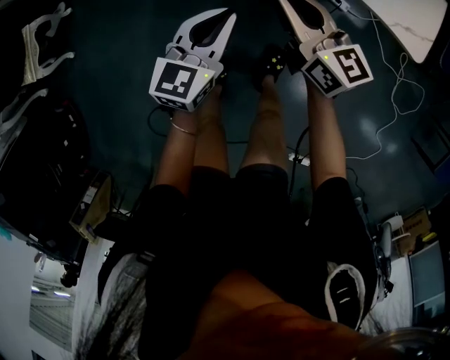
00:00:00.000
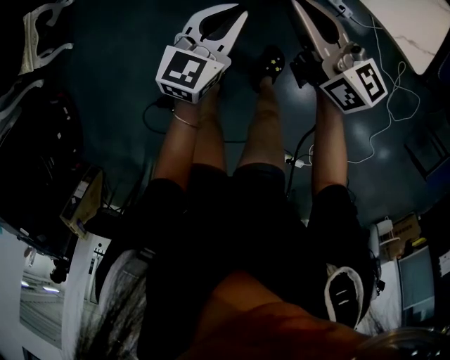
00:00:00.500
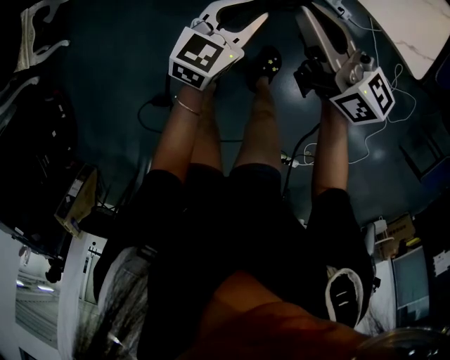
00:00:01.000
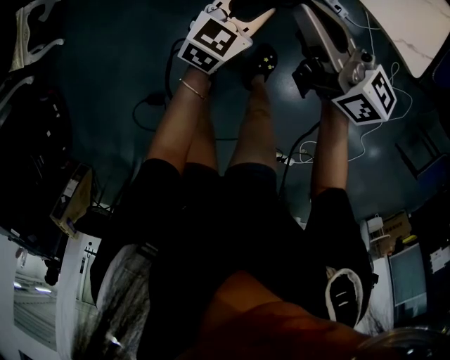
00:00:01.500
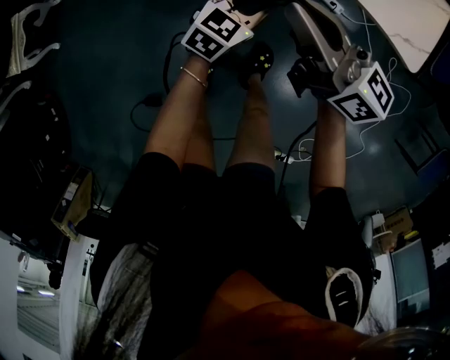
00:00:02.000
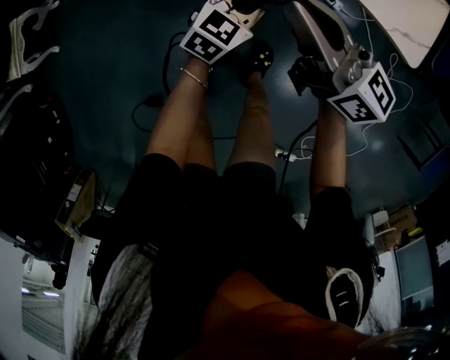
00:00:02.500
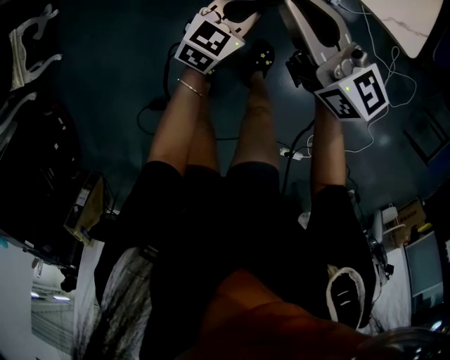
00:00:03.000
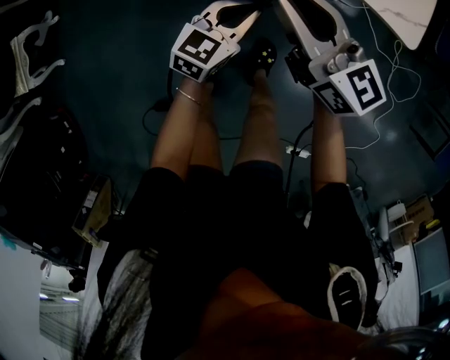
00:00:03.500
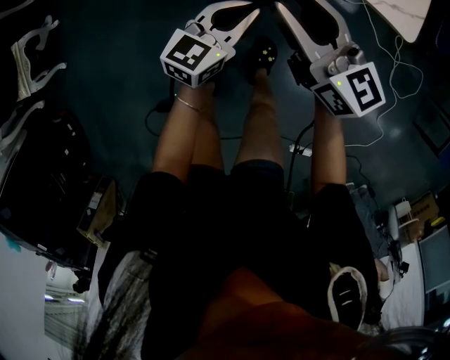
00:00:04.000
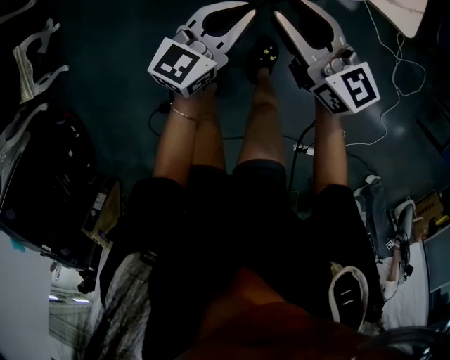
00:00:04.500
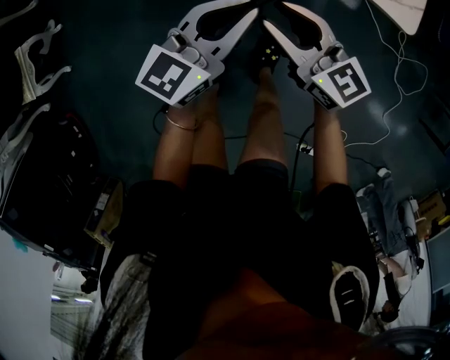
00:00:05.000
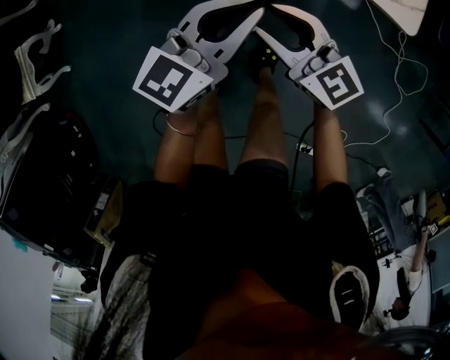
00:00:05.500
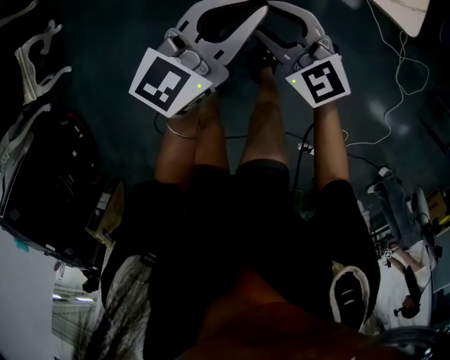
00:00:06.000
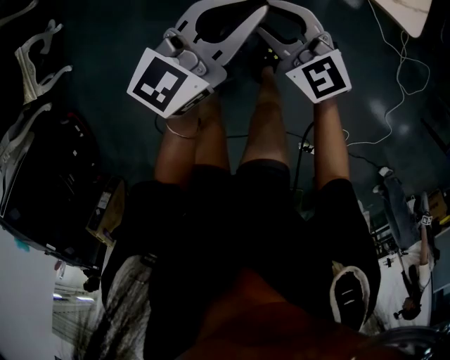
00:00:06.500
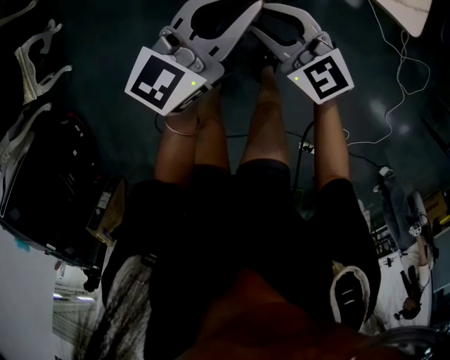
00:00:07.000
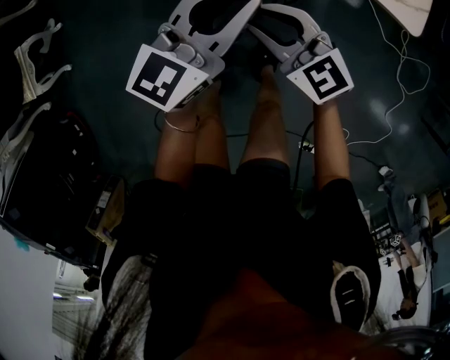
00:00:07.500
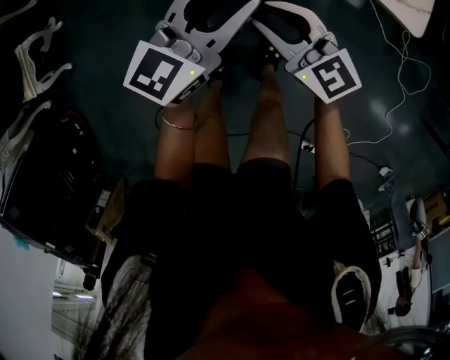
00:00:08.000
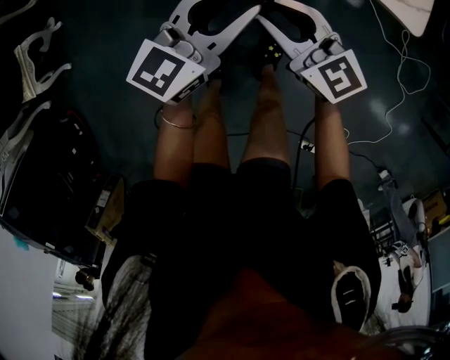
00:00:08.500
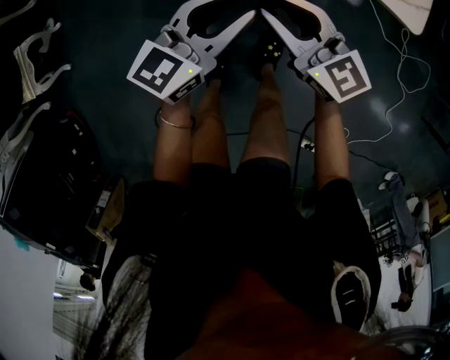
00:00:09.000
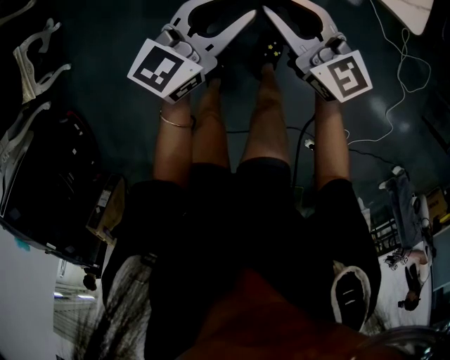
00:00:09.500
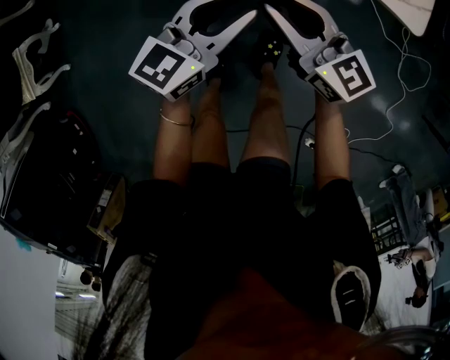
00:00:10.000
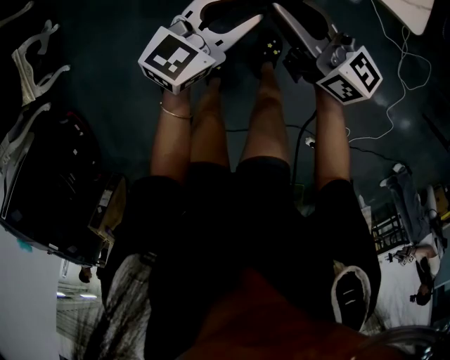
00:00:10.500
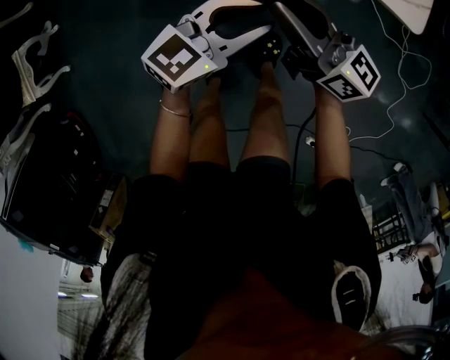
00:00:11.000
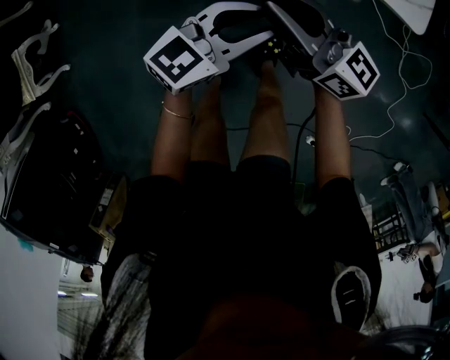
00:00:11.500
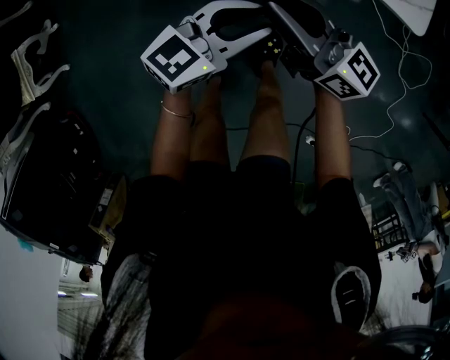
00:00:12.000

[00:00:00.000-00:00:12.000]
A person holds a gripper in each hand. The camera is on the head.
00:00:00.000 to 00:00:02.000: The left gripper moves downward and to the right, some 10 cm, and changes its angle by roughly 20 degrees. Meanwhile the right gripper is displaced upward by approximately 5 cm, and turns by approximately 20 degrees.
00:00:02.000 to 00:00:04.000: The left gripper changes place by roughly 5 cm. The right gripper is displaced to the right by approximately 5 cm, rotates roughly 20 degrees, and opens.
00:00:04.000 to 00:00:06.000: The left gripper travels upward by about 15 cm. The right gripper moves downward, roughly 5 cm, and rotates some 40 degrees.
00:00:06.000 to 00:00:08.000: There are only small adjustments of the grippers.
00:00:08.000 to 00:00:10.000: The left gripper ends up approximately 5 cm from where it was.
00:00:10.000 to 00:00:12.000: The right gripper rotates roughly 20 degrees; the left gripper moves about 5 cm.

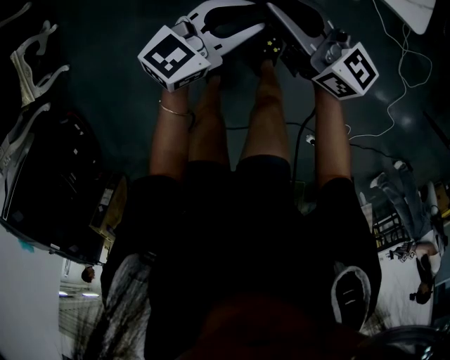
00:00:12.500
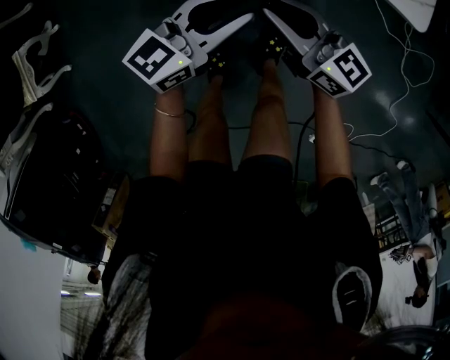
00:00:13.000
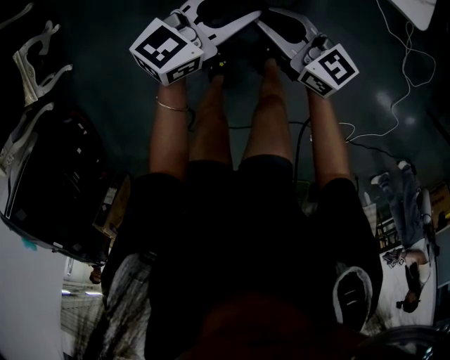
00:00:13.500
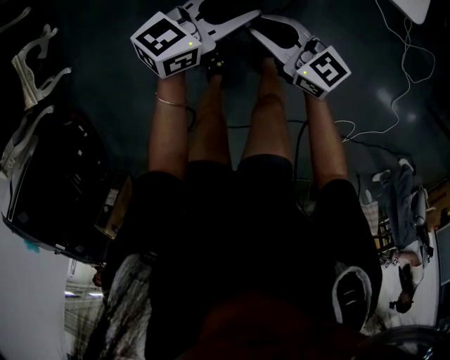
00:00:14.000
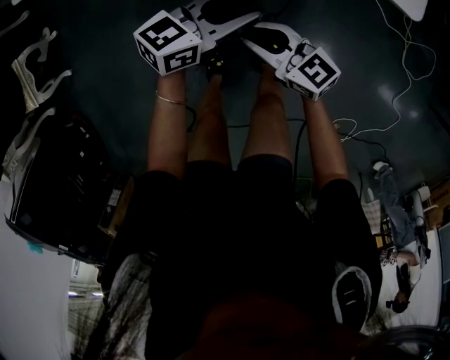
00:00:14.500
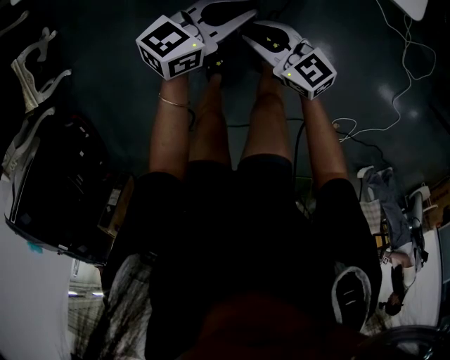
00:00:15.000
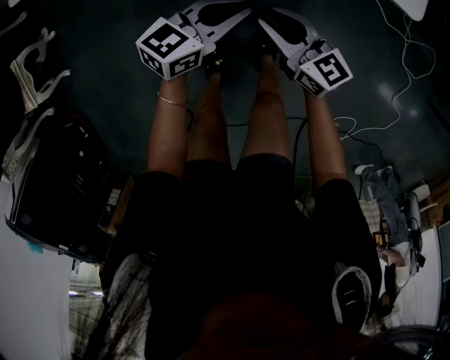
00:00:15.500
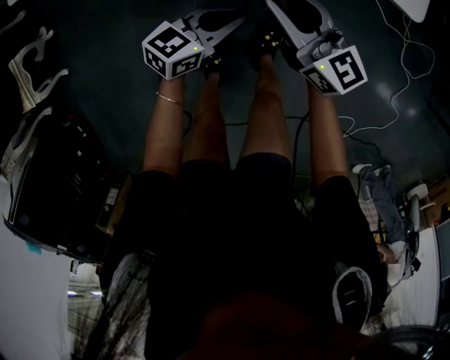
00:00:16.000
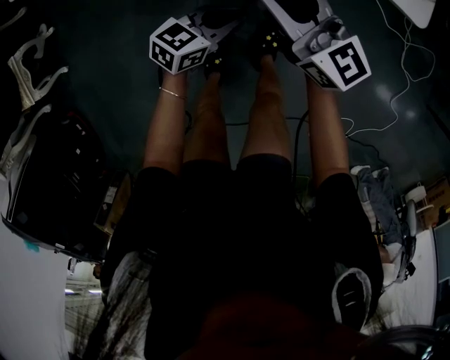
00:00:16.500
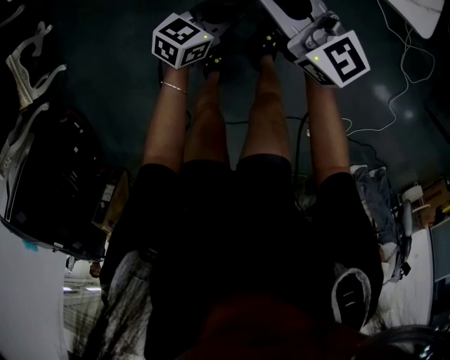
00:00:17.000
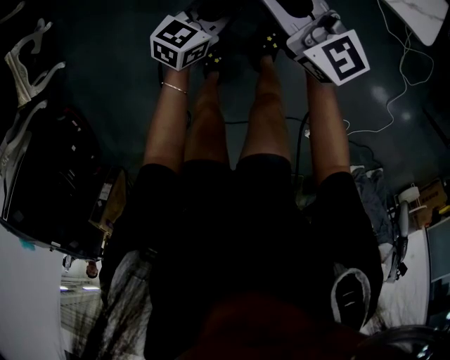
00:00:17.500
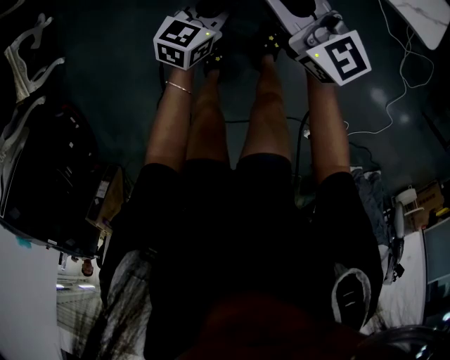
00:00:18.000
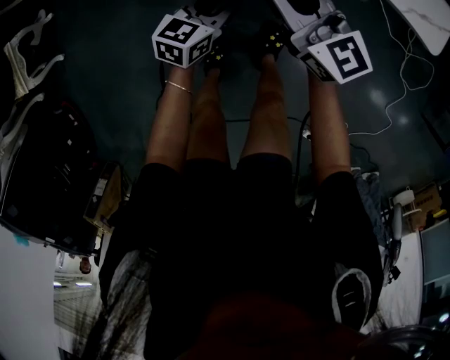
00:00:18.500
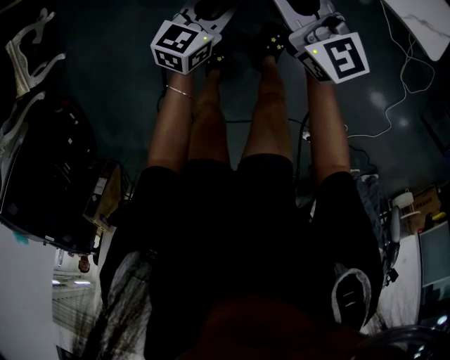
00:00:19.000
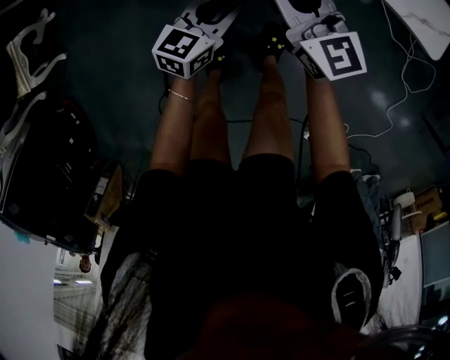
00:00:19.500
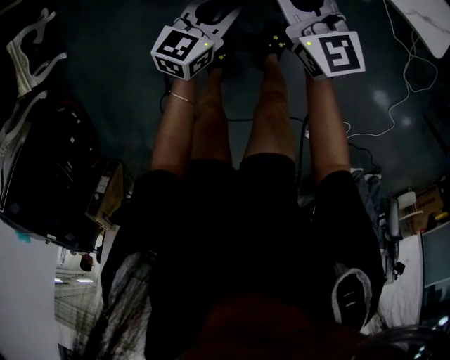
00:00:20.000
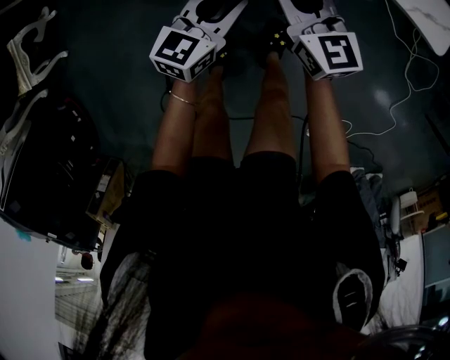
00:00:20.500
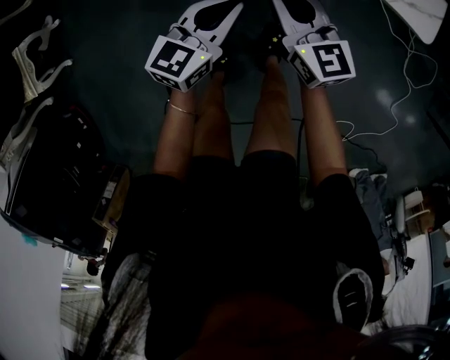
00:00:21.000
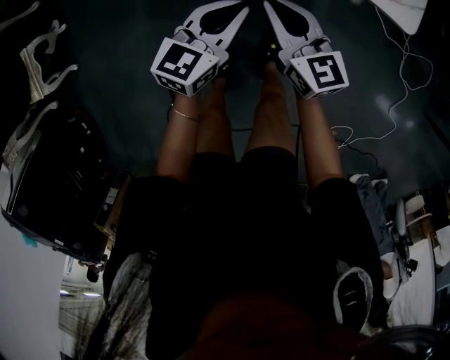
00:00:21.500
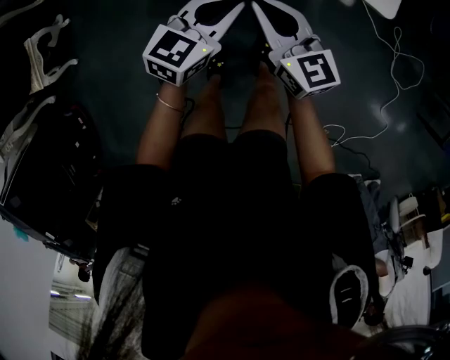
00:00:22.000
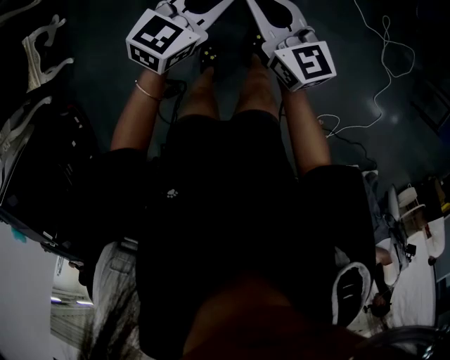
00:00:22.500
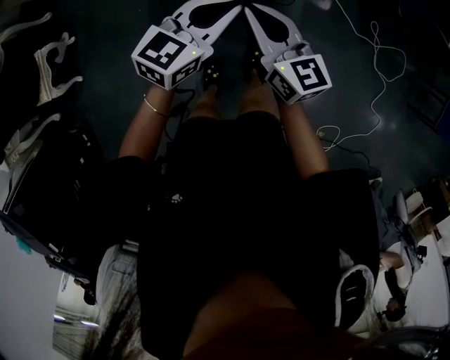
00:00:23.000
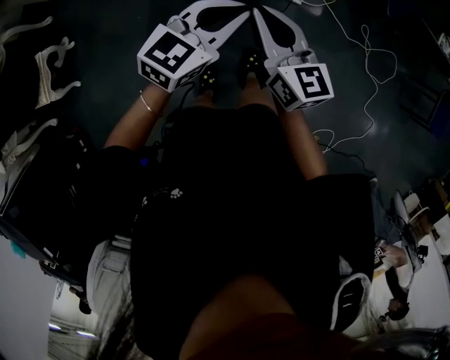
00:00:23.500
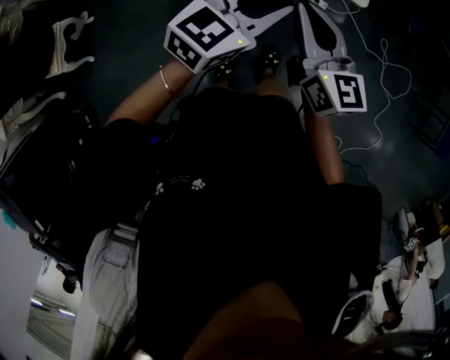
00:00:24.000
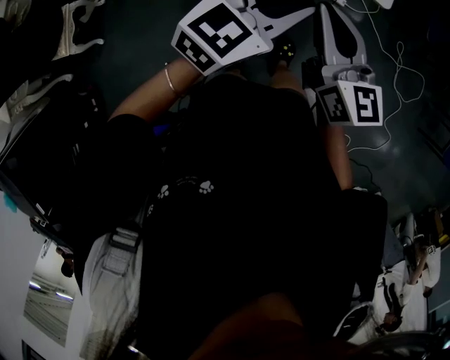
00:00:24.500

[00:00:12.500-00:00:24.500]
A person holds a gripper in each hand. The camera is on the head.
00:00:12.500 to 00:00:14.500: The right gripper shifts roughly 10 cm downward, and rotates approximately 20 degrees.
00:00:14.500 to 00:00:16.500: The left gripper travels downward by some 10 cm; the right gripper moves some 15 cm, and turns by approximately 30 degrees.
00:00:16.500 to 00:00:18.500: The right gripper ends up about 5 cm from where it was. The left gripper heads to the left, covering roughly 5 cm.
00:00:18.500 to 00:00:20.500: The left gripper goes approximately 5 cm upward; the right gripper shifts by some 5 cm.
00:00:20.500 to 00:00:22.500: The right gripper shifts roughly 15 cm upward and backward. The left gripper shifts about 20 cm upward.
00:00:22.500 to 00:00:24.500: The grippers both shift upward by roughly 15 cm.

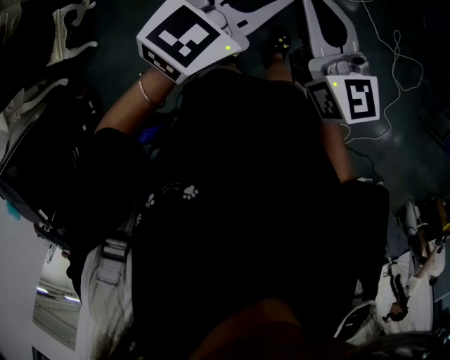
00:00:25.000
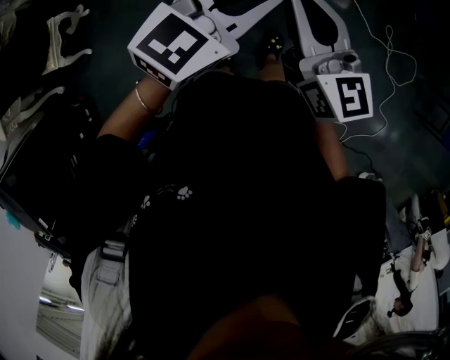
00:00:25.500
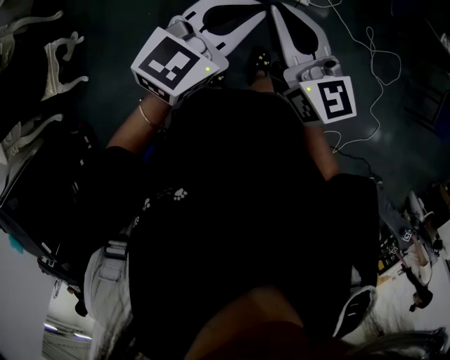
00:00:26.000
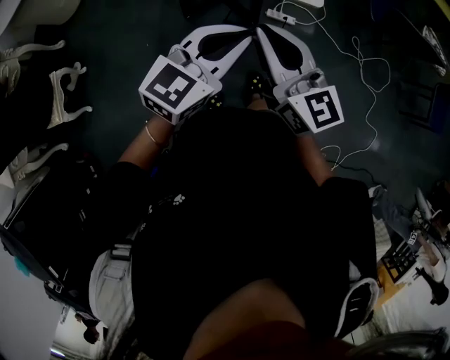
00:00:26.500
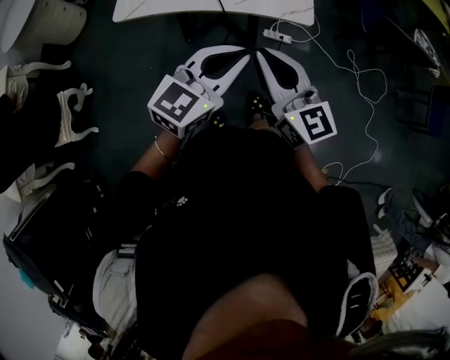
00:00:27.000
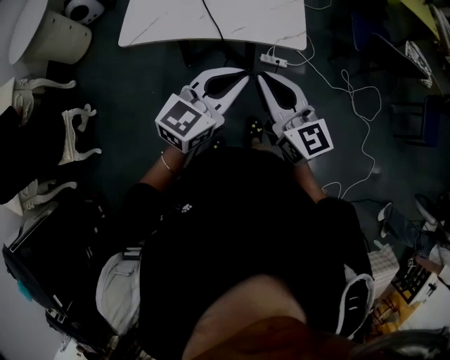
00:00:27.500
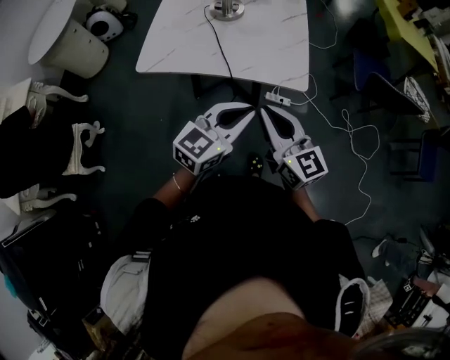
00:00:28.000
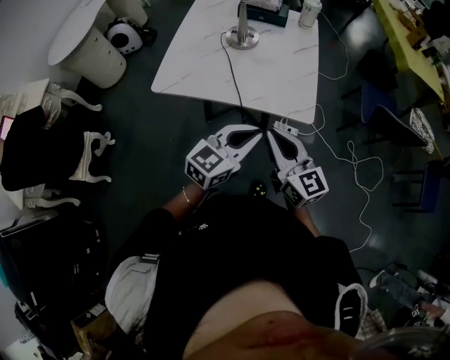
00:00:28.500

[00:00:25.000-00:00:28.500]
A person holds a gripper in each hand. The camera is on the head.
00:00:25.000 to 00:00:27.000: The grippers move only a little.
00:00:27.000 to 00:00:28.500: The two grippers go some 5 cm forward.
